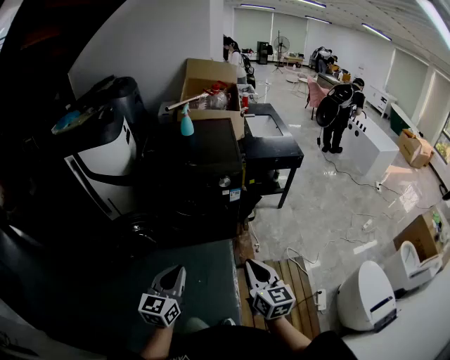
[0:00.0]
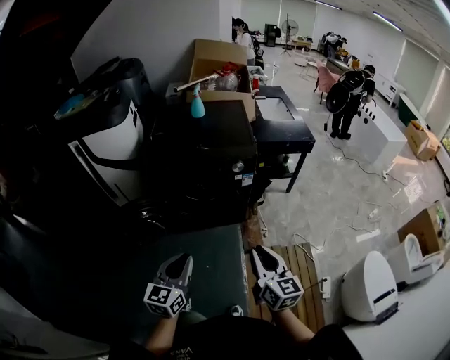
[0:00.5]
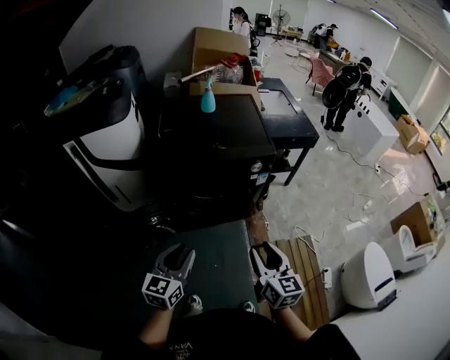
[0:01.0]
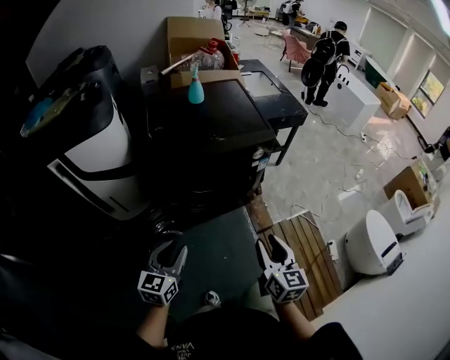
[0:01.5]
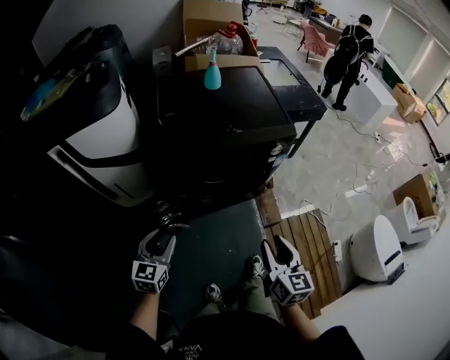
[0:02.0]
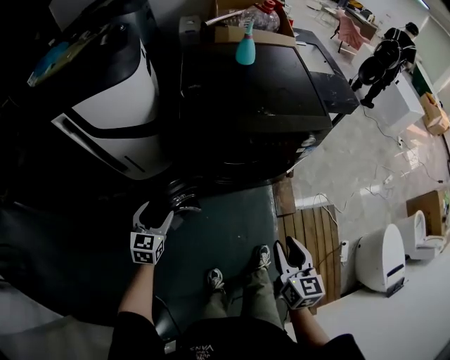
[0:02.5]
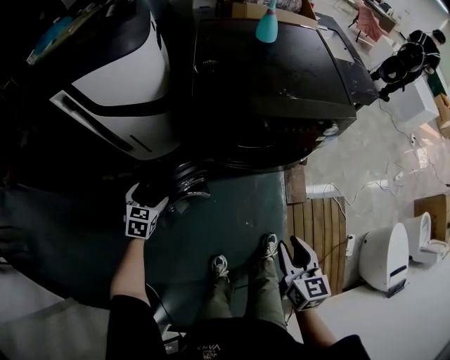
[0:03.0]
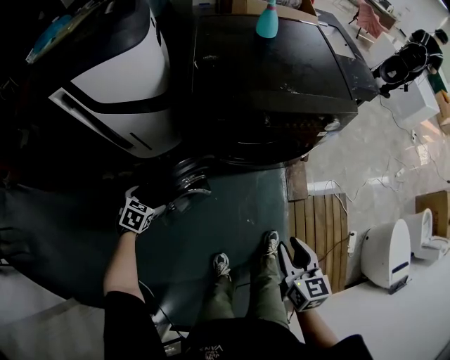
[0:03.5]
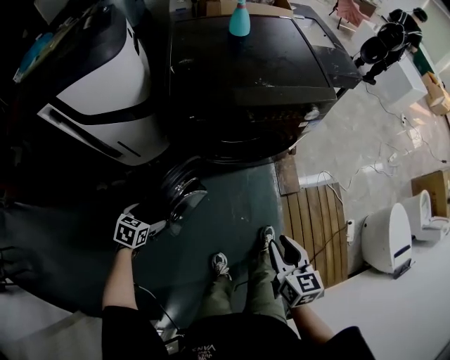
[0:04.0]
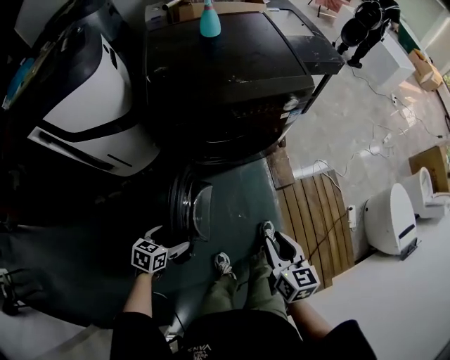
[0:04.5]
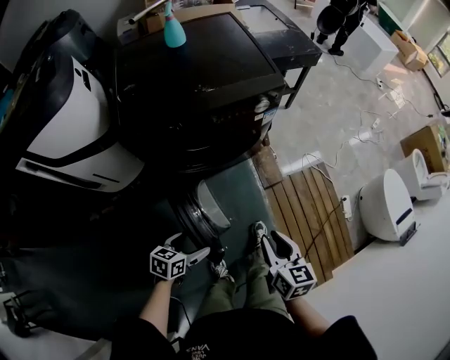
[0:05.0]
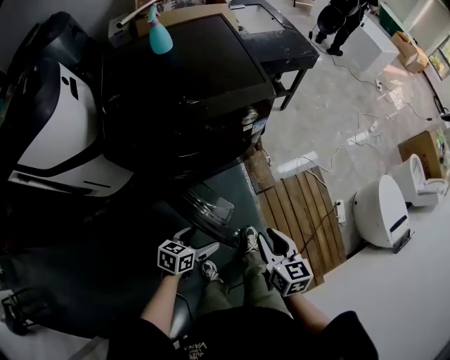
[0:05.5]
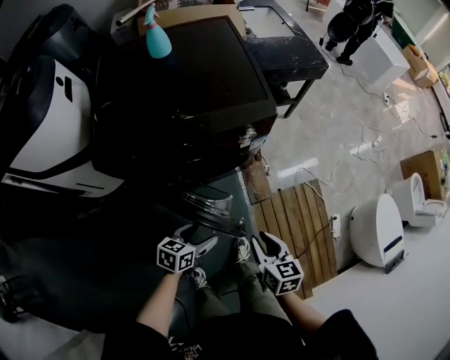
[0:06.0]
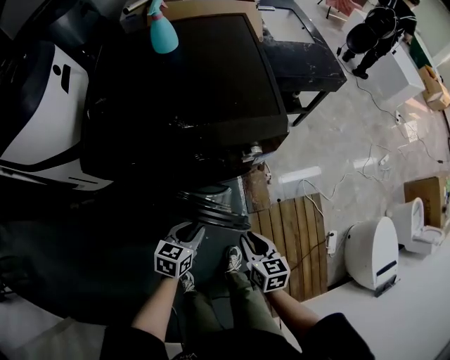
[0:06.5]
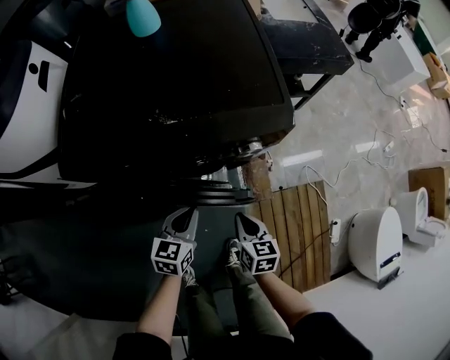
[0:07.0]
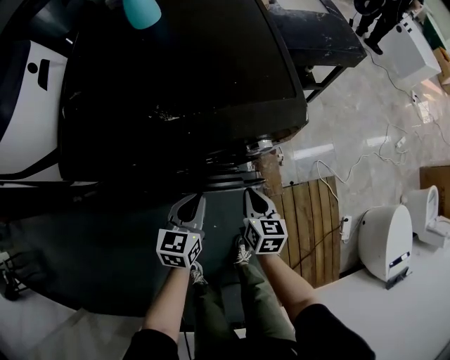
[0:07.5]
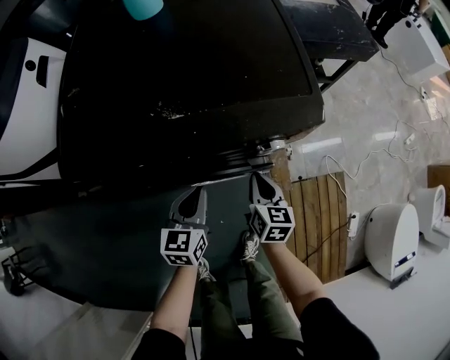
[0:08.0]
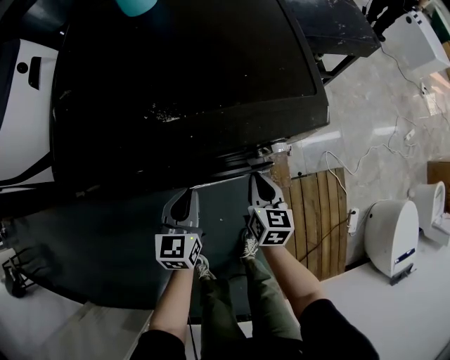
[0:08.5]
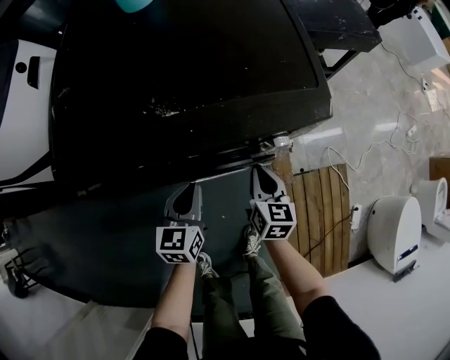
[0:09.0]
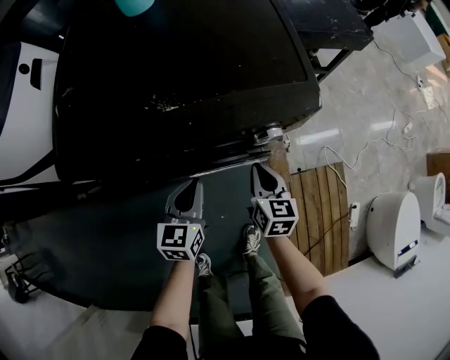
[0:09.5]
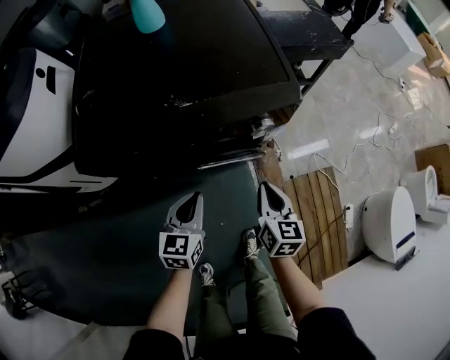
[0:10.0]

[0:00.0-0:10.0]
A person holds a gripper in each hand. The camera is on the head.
0:00.0 to 0:02.0: The left gripper moves to the left and forward, roughly 40 cm, while the right gripper travels to the left and forward by approximately 25 cm, and opens.
0:02.0 to 0:04.0: The right gripper goes roughly 10 cm downward. The left gripper moves downward and to the left, some 25 cm, points its fingers roughly 40 degrees further downward, and opens.
0:04.0 to 0:06.0: The left gripper travels to the right and forward by roughly 40 cm, and turns by about 30 degrees. The right gripper heads forward and to the right, covering roughly 20 cm.
0:06.0 to 0:08.0: The left gripper is displaced forward by roughly 20 cm, changes its angle by roughly 40 degrees, and closes. The right gripper travels forward and downward by approximately 30 cm, and closes.
0:08.0 to 0:10.0: The right gripper goes some 15 cm upward and backward; the left gripper moves backward, roughly 5 cm.

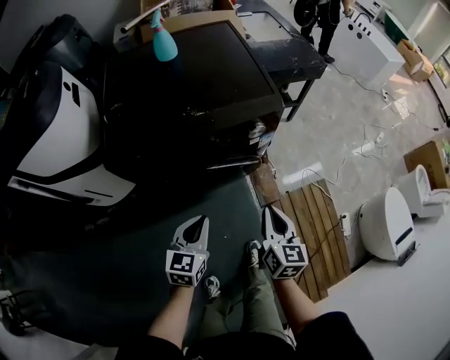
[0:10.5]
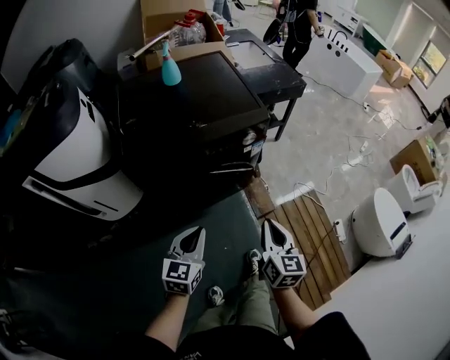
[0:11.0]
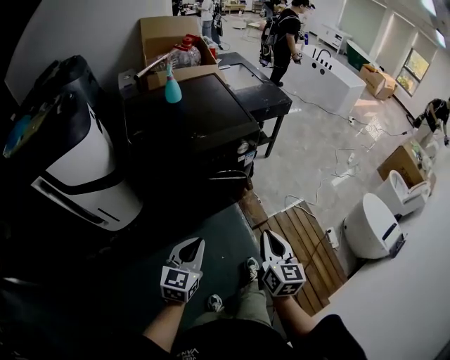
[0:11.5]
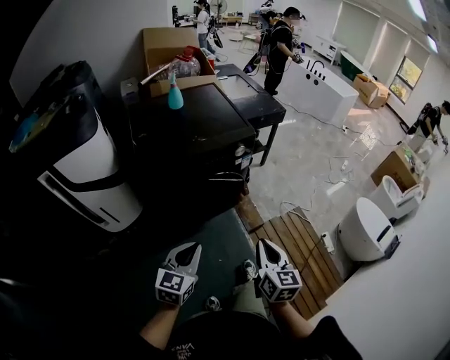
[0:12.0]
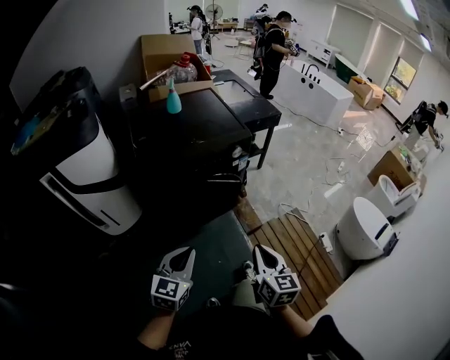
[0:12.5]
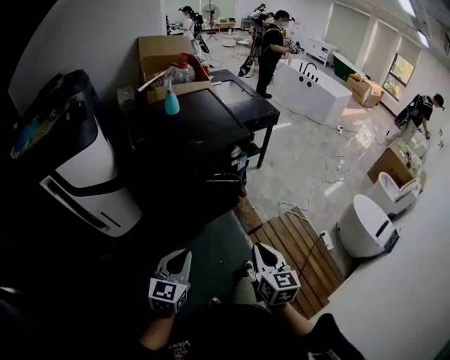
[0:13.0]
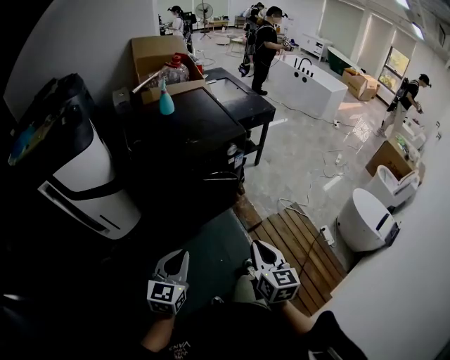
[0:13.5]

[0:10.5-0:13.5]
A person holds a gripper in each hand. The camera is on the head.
0:10.5 to 0:12.0: The two grippers go roughly 25 cm backward and upward.
0:12.0 to 0:13.5: The left gripper shifts by about 5 cm.

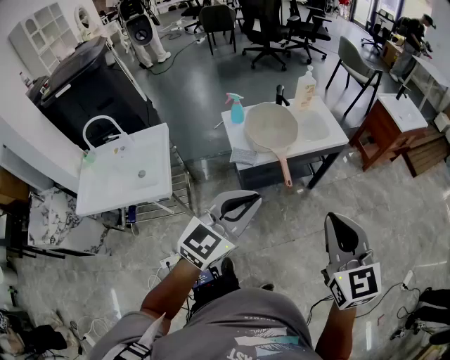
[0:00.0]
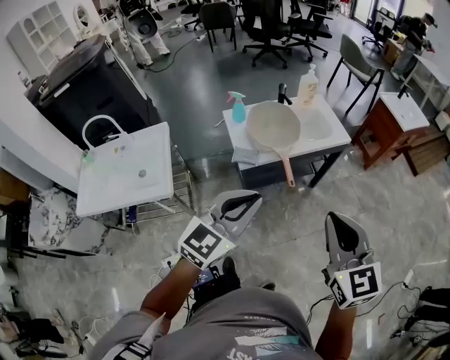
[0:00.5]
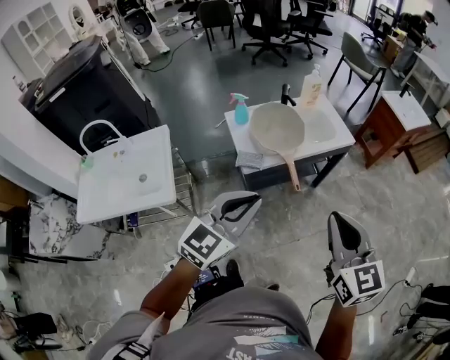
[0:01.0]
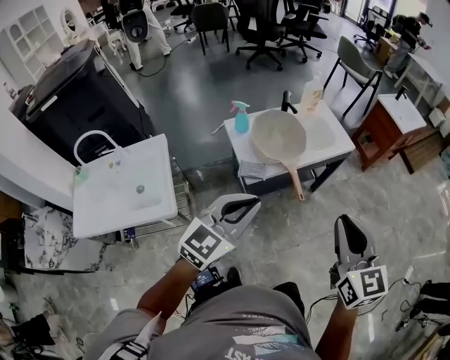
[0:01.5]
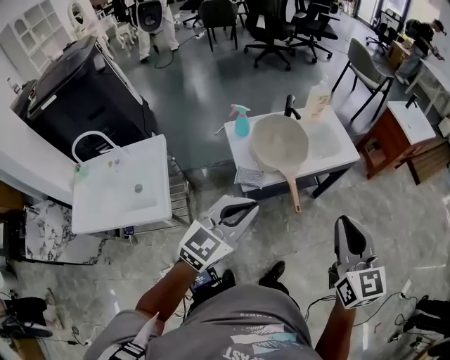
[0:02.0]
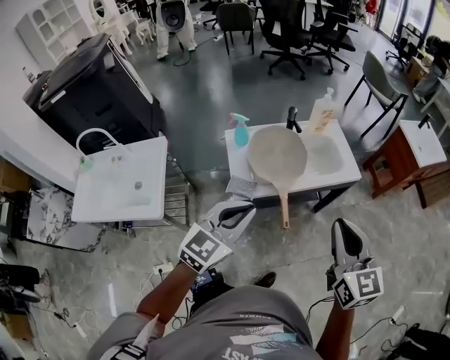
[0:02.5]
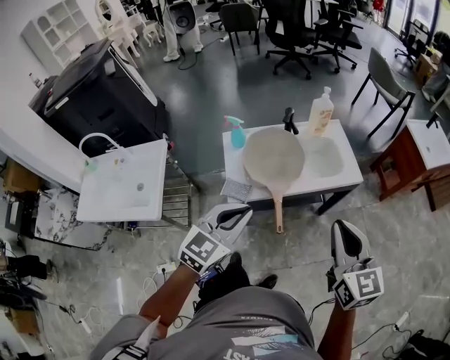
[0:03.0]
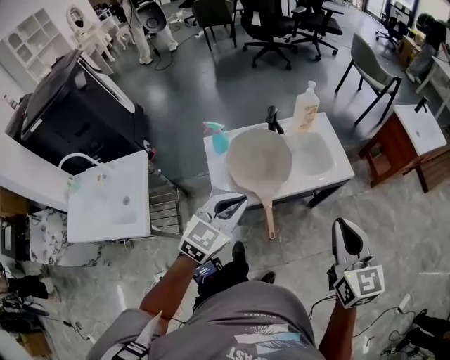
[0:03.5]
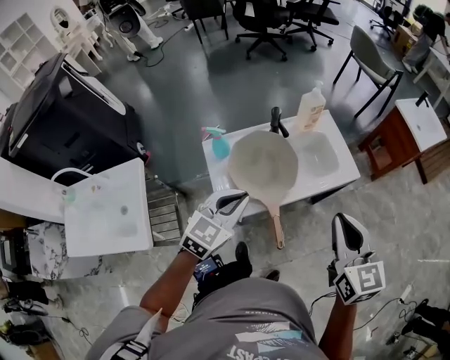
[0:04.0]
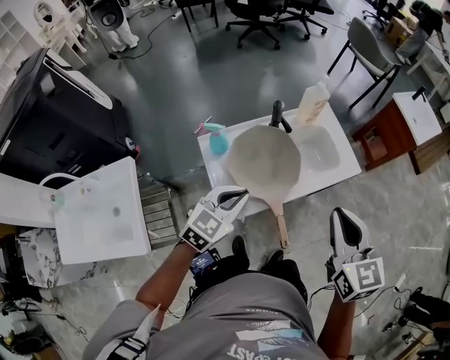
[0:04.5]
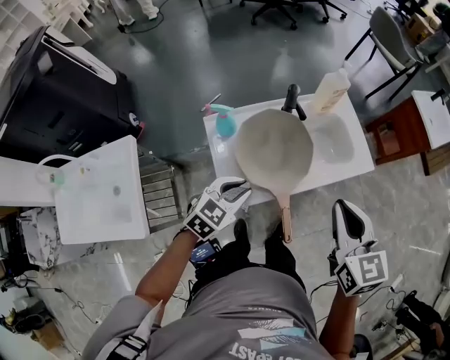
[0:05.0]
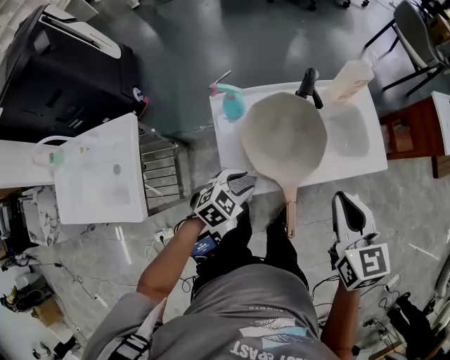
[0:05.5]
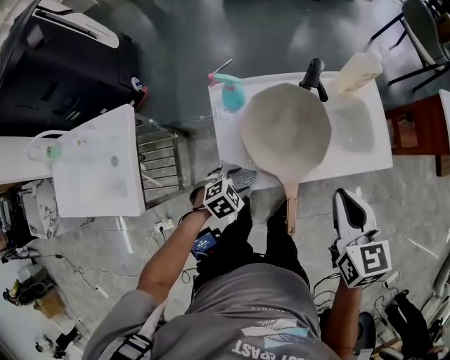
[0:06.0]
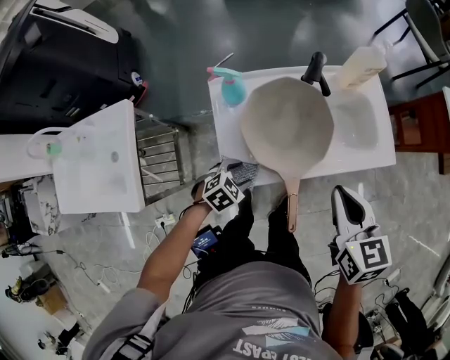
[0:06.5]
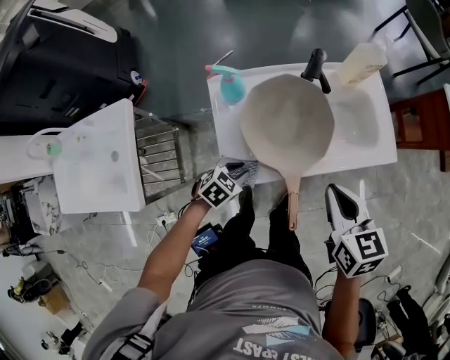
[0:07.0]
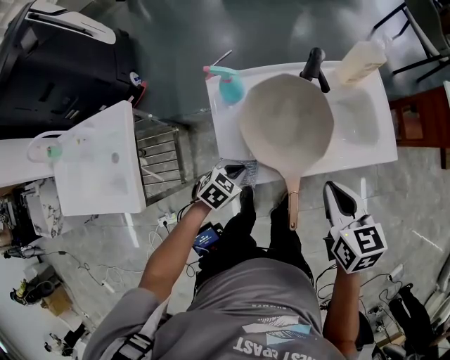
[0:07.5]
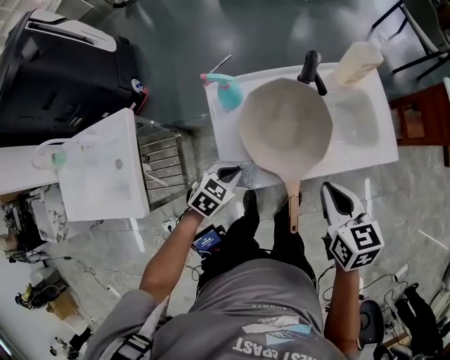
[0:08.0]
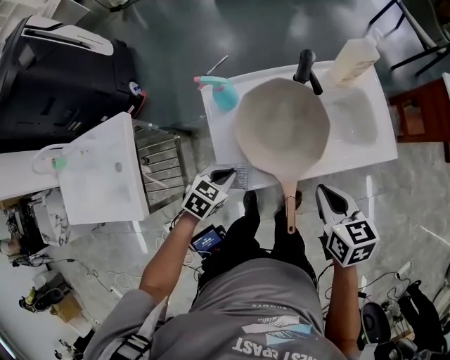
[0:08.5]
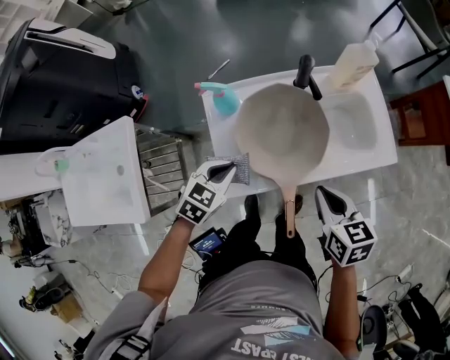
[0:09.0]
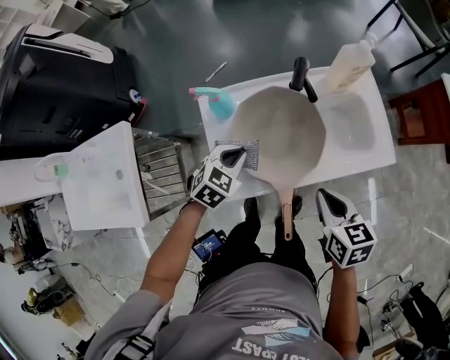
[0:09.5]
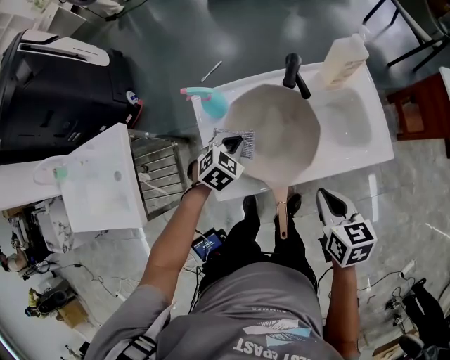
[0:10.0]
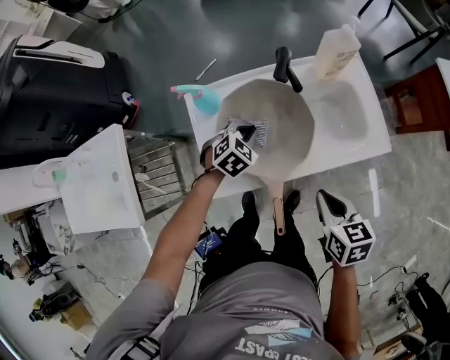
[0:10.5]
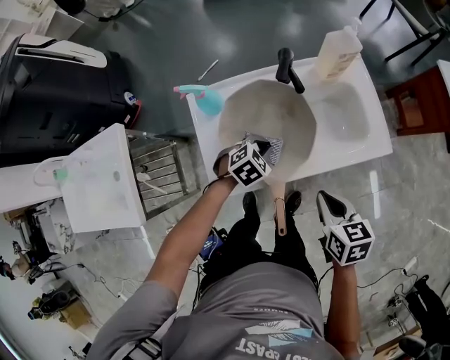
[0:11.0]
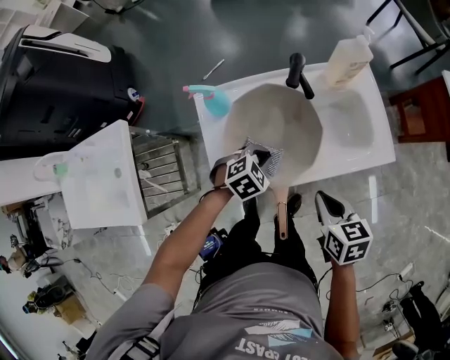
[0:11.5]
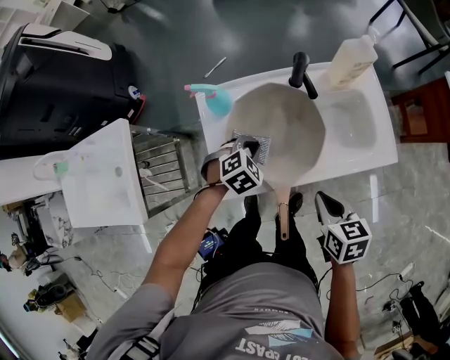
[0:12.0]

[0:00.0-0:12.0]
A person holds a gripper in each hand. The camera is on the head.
0:00.0 to 0:02.0: The left gripper heads forward, to the left and downward, covering roughly 15 cm; the right gripper heads forward, covering about 15 cm.
0:02.0 to 0:04.0: Both grippers travel together forward, roughly 25 cm.
0:04.0 to 0:06.0: The right gripper heads downward, forward and to the left, covering about 20 cm; the left gripper moves downward, approximately 30 cm, points its fingers about 40 degrees further downward, and opens.
0:06.0 to 0:08.0: The right gripper is displaced downward by roughly 5 cm, while the left gripper closes.
0:08.0 to 0:10.0: The right gripper moves some 5 cm. Meanwhile the left gripper shifts approximately 10 cm forward.

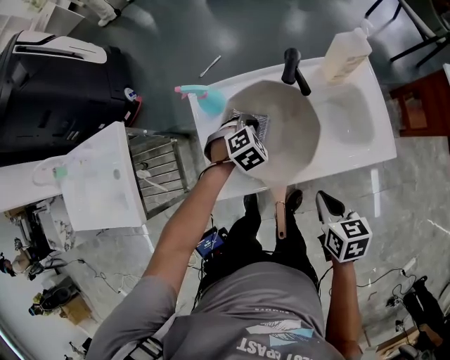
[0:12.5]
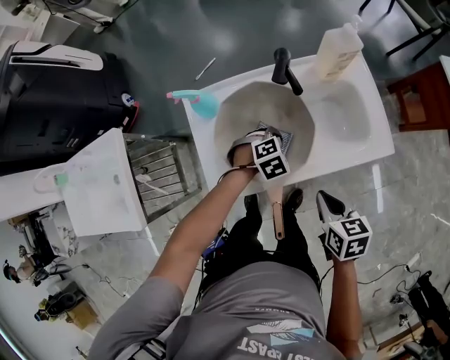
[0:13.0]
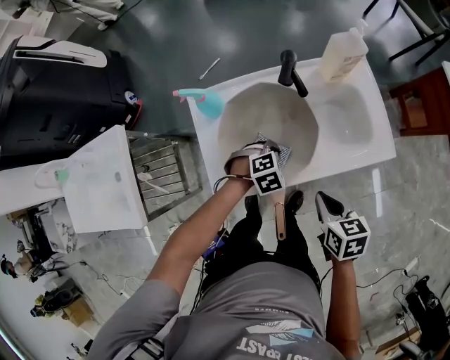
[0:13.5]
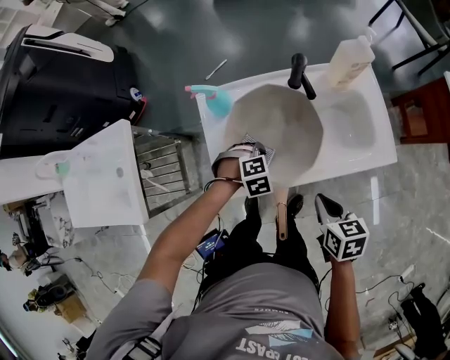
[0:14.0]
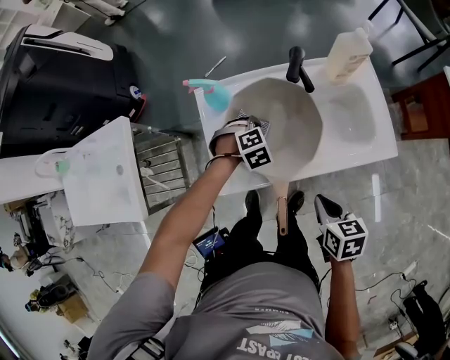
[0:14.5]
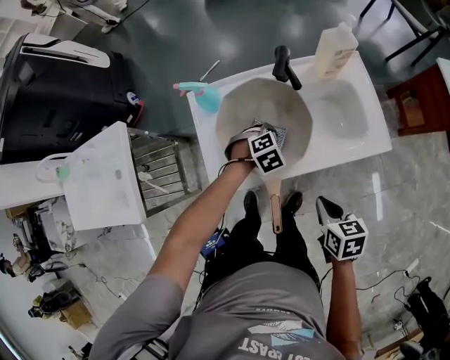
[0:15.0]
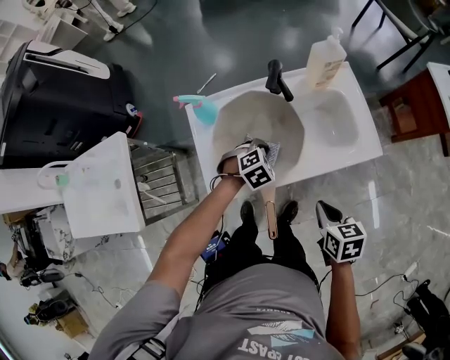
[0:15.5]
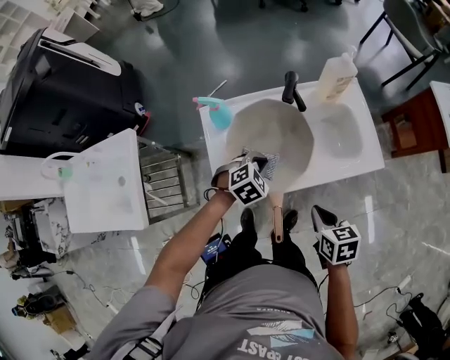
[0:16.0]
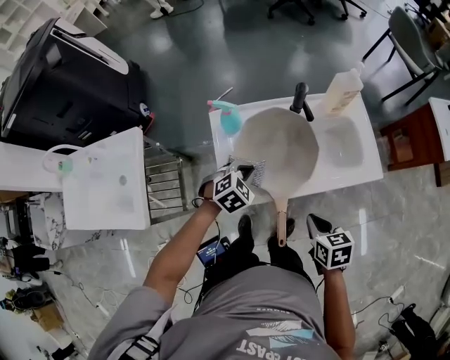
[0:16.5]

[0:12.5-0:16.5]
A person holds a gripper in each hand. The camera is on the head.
0:12.5 to 0:14.5: The left gripper travels to the right and back again, about 10 cm each way.
0:14.5 to 0:16.5: The left gripper is displaced upward and backward by some 15 cm, and swivels roughly 20 degrees, while the right gripper travels to the right and back again, approximately 5 cm each way.
